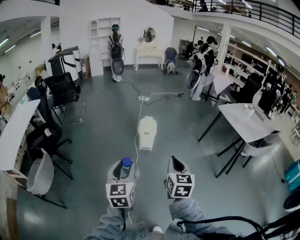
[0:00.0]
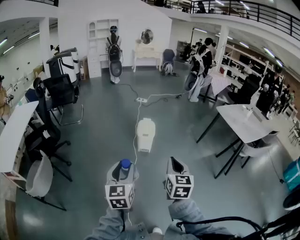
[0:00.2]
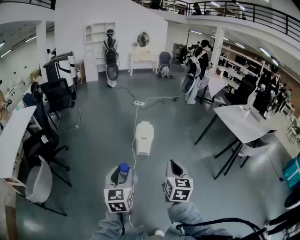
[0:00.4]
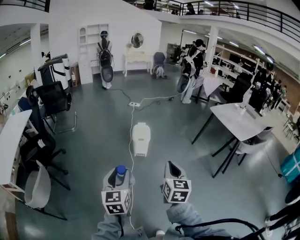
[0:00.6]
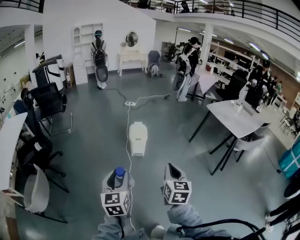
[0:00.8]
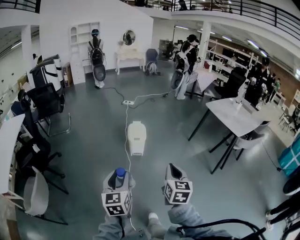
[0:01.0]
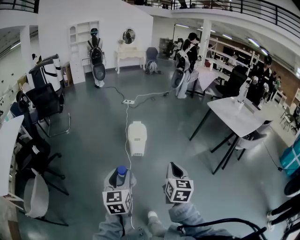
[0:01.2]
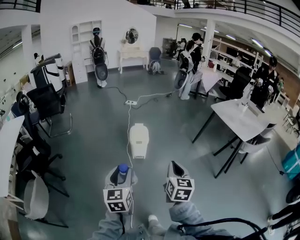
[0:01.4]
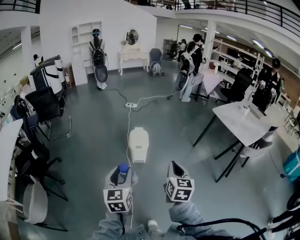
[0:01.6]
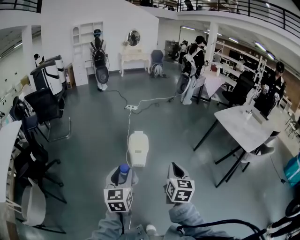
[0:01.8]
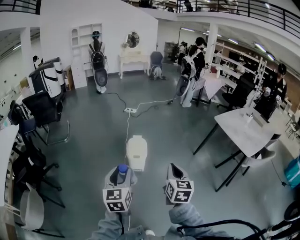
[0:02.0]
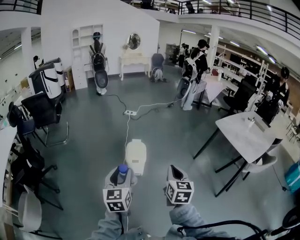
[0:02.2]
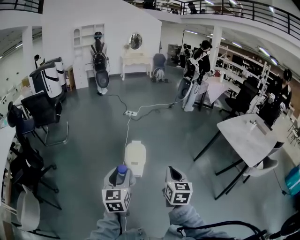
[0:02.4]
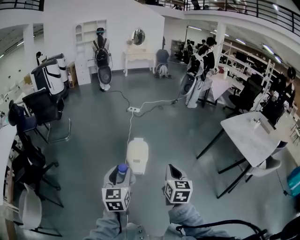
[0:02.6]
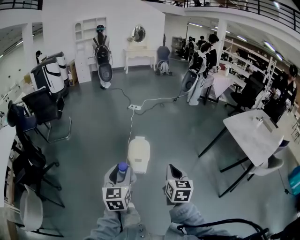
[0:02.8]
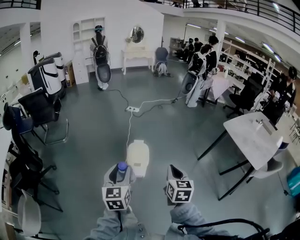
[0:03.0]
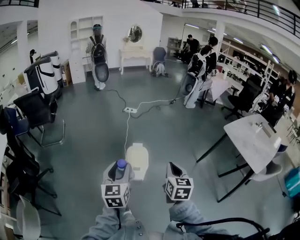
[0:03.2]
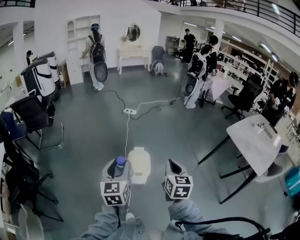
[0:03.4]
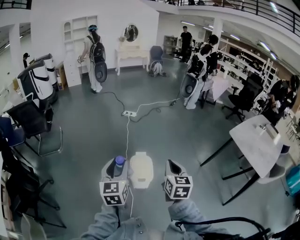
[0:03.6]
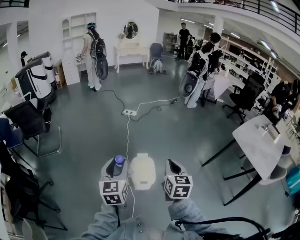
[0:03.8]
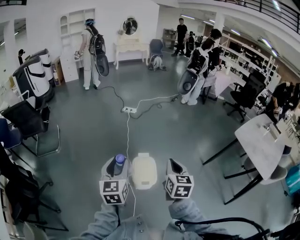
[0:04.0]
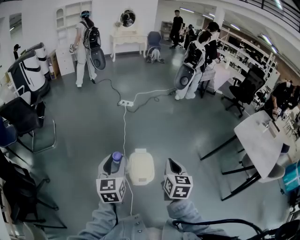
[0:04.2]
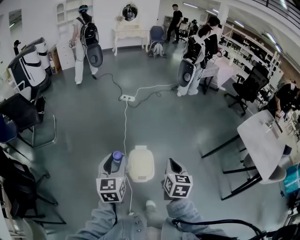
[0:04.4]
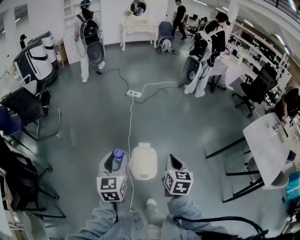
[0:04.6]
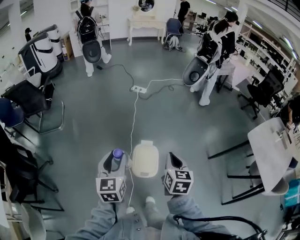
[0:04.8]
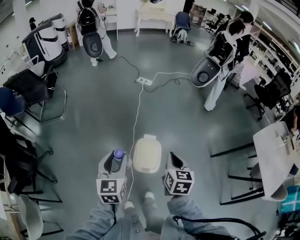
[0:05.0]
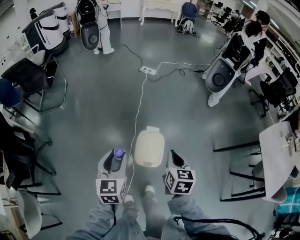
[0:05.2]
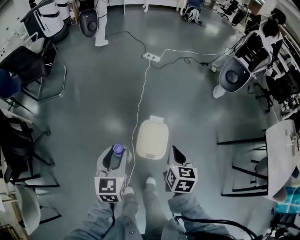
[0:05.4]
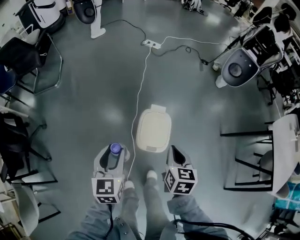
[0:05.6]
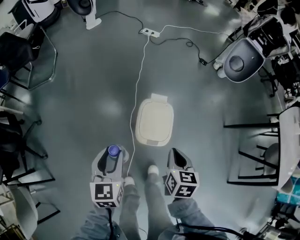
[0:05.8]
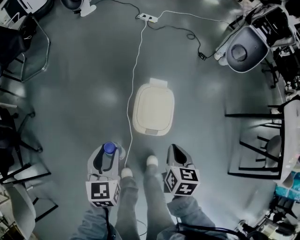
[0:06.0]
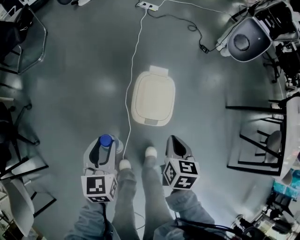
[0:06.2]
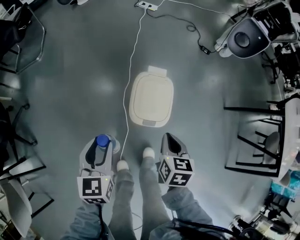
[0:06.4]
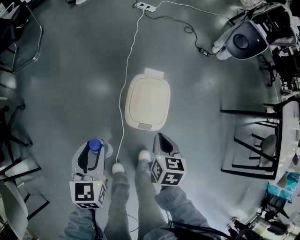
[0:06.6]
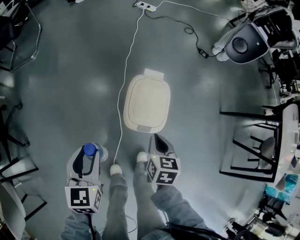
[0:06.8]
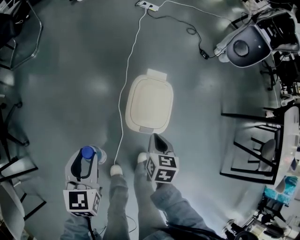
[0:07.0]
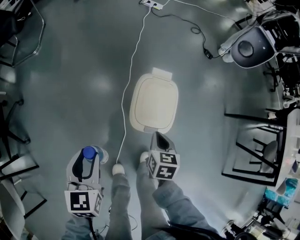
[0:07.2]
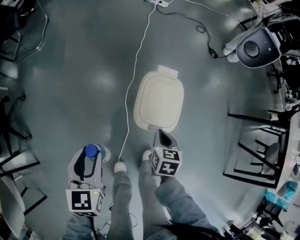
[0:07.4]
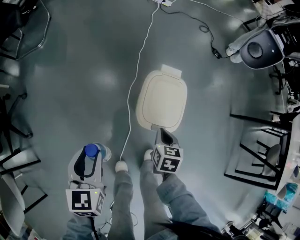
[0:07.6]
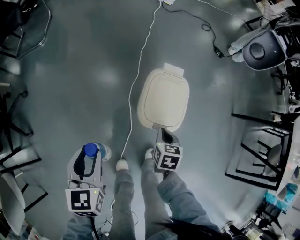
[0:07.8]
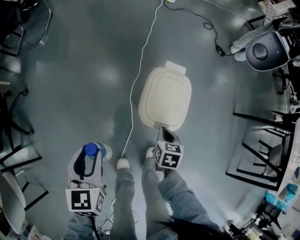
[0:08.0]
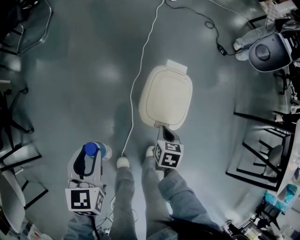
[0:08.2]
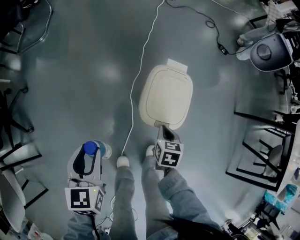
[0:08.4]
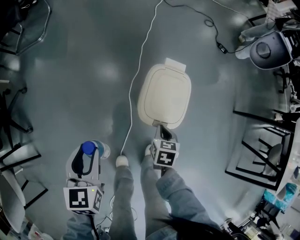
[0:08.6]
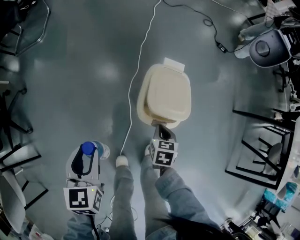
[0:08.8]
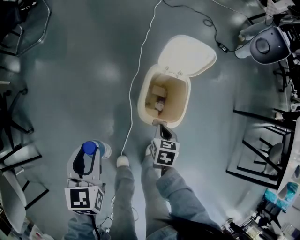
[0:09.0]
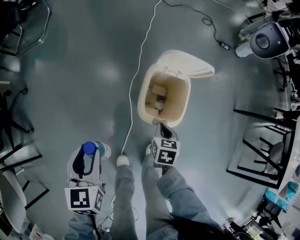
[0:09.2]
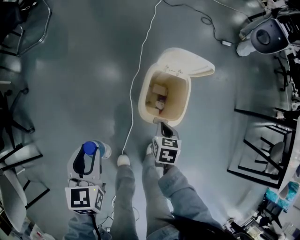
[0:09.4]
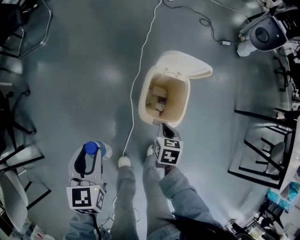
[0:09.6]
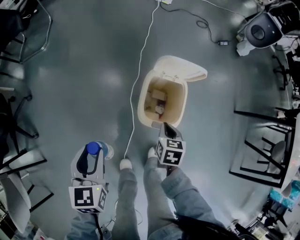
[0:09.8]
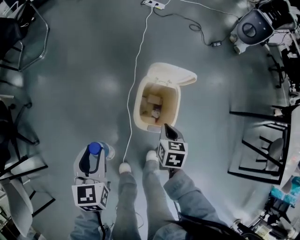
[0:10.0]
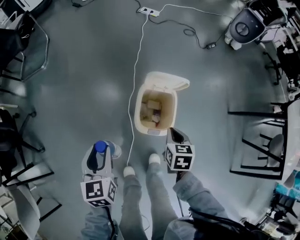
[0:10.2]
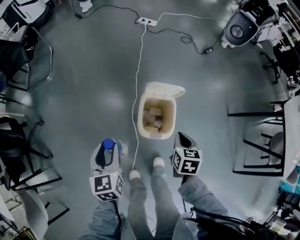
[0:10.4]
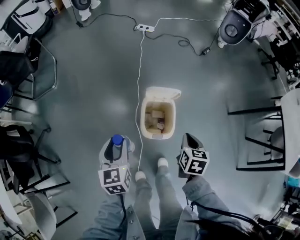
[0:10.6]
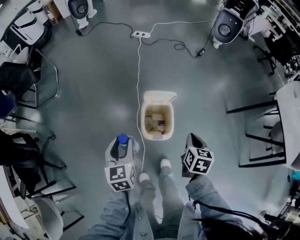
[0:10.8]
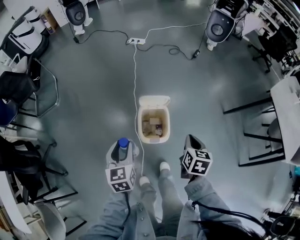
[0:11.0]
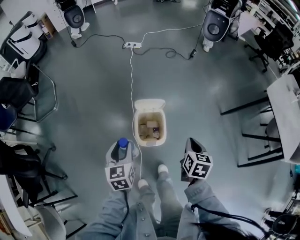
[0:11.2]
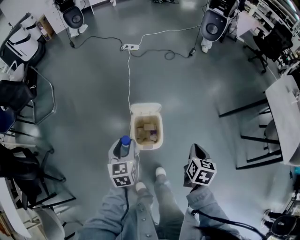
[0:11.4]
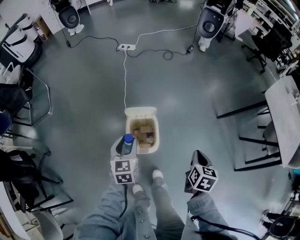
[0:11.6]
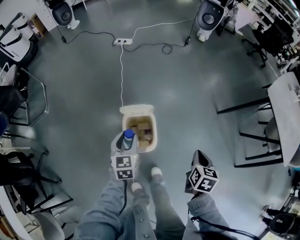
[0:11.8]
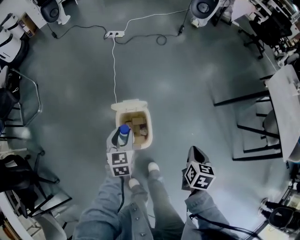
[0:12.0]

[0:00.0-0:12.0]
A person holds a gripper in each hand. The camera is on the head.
0:00.0 to 0:01.6: The grippers both shift forward by approximately 15 cm.
0:01.6 to 0:03.0: The two grippers go about 25 cm forward.
0:03.0 to 0:04.4: The grippers both shift forward by some 30 cm.
0:04.4 to 0:06.0: The grippers both shift downward by some 35 cm. The right gripper turns by roughly 20 degrees.
0:06.0 to 0:07.6: The left gripper is displaced to the left and downward by approximately 10 cm; the right gripper moves downward, about 15 cm.
0:07.6 to 0:09.0: The grippers move only a little.
0:09.0 to 0:10.4: The left gripper shifts approximately 10 cm upward and forward; the right gripper goes roughly 20 cm upward.
0:10.4 to 0:12.0: The right gripper is displaced to the right by roughly 20 cm, and changes its angle by roughly 20 degrees. The left gripper goes some 25 cm to the right and forward, and swivels approximately 20 degrees.

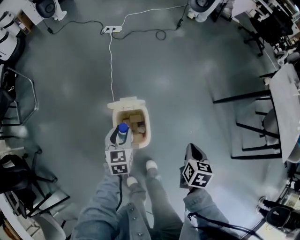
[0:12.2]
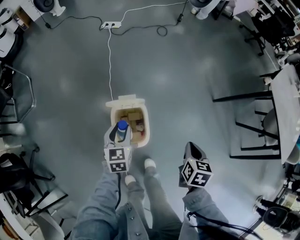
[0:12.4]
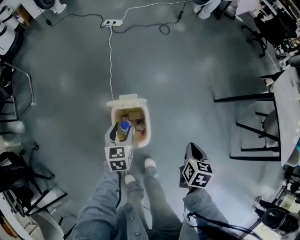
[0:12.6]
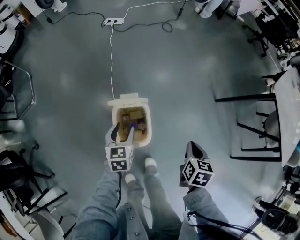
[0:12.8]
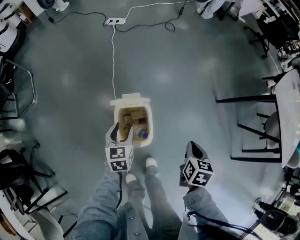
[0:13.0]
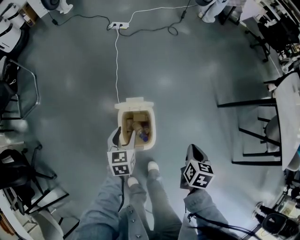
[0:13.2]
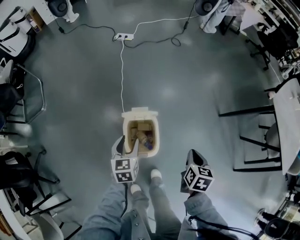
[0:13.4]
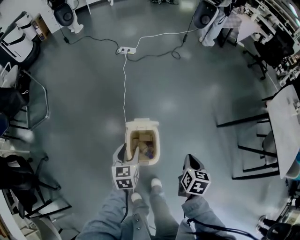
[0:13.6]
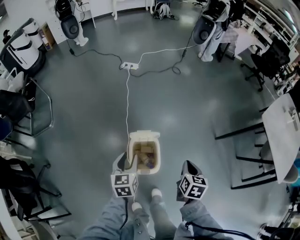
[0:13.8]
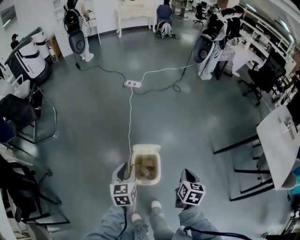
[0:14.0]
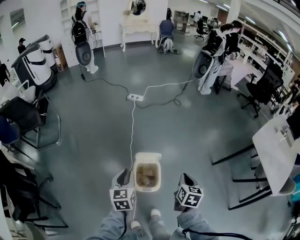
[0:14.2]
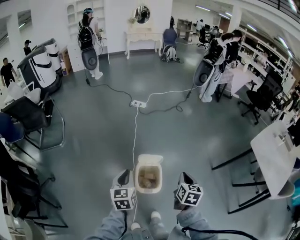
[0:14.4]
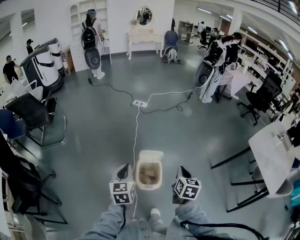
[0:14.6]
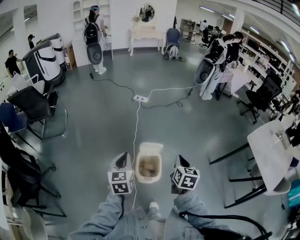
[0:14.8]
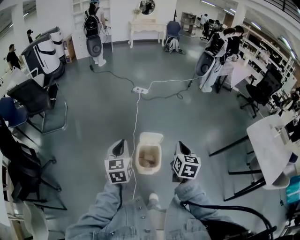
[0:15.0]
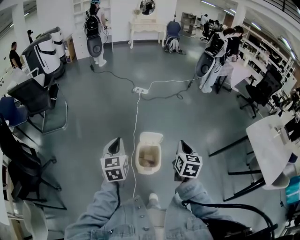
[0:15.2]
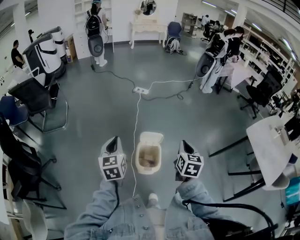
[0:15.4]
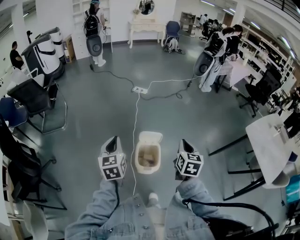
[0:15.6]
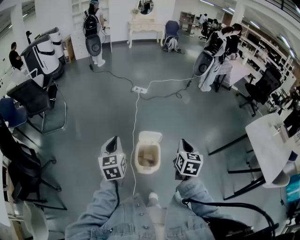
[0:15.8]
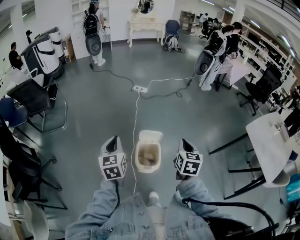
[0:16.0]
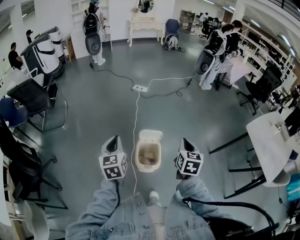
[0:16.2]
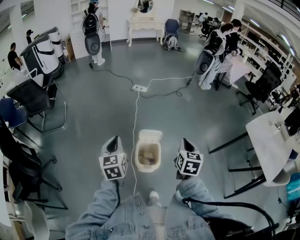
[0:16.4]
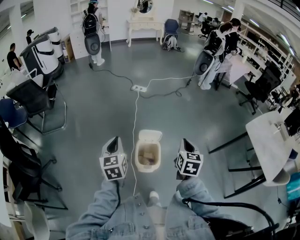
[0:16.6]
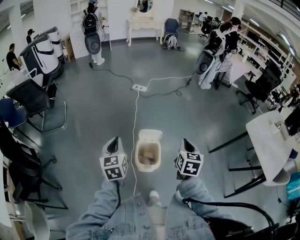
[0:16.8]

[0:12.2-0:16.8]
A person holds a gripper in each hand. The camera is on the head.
0:12.2 to 0:13.8: The left gripper moves upward, about 10 cm. Meanwhile the right gripper shifts roughly 10 cm upward and to the left.
0:13.8 to 0:15.2: The right gripper shifts roughly 20 cm upward, and swivels some 20 degrees. The left gripper travels upward, backward and to the left by about 25 cm, and closes its fingers.
0:15.2 to 0:16.8: The grippers make only small movements.

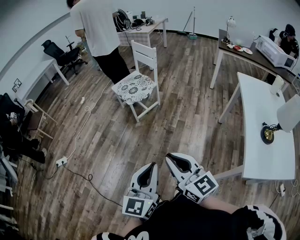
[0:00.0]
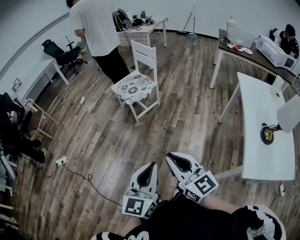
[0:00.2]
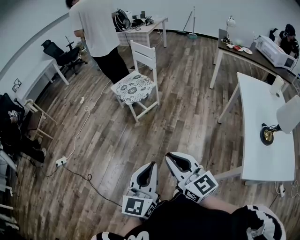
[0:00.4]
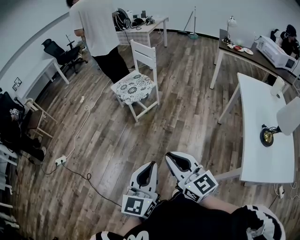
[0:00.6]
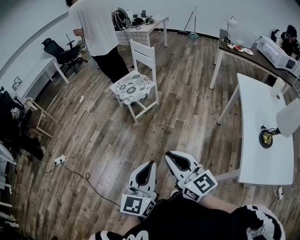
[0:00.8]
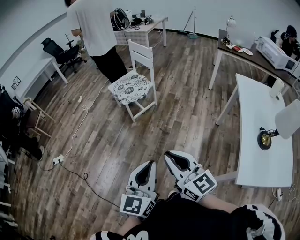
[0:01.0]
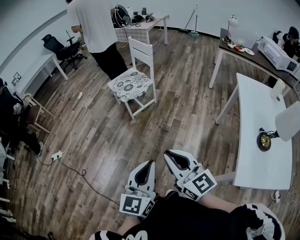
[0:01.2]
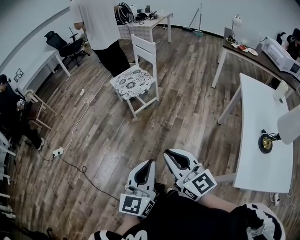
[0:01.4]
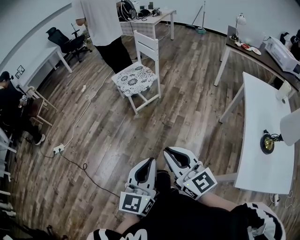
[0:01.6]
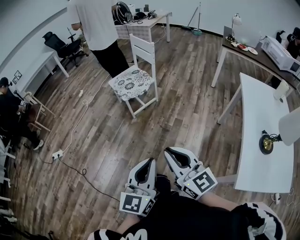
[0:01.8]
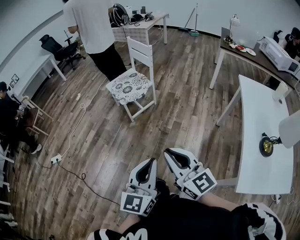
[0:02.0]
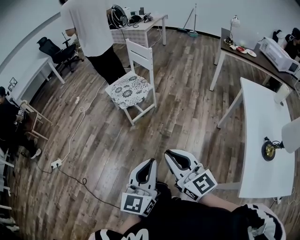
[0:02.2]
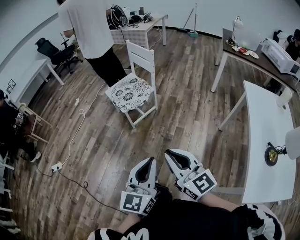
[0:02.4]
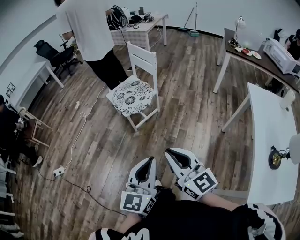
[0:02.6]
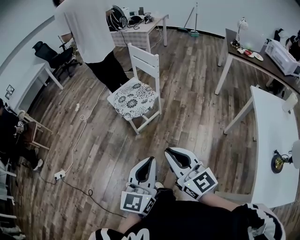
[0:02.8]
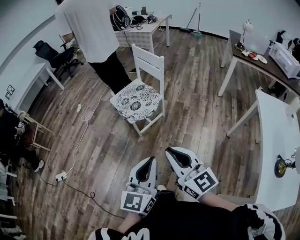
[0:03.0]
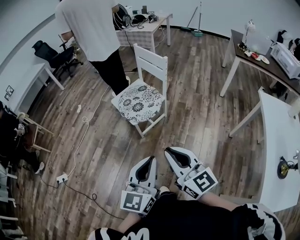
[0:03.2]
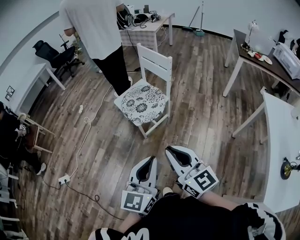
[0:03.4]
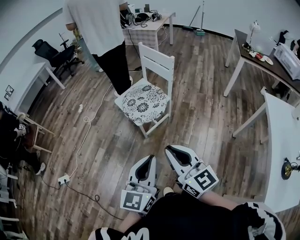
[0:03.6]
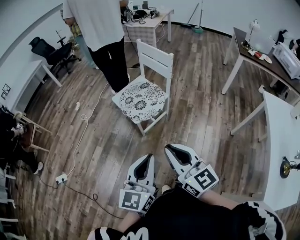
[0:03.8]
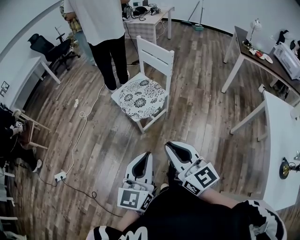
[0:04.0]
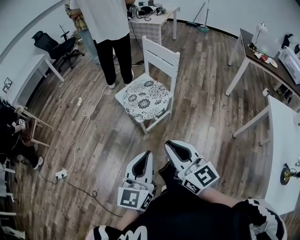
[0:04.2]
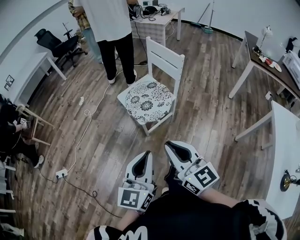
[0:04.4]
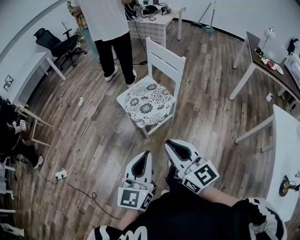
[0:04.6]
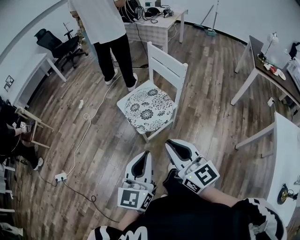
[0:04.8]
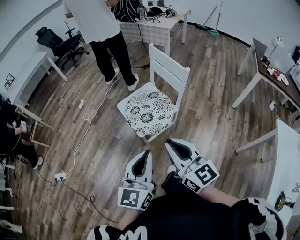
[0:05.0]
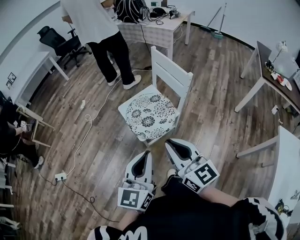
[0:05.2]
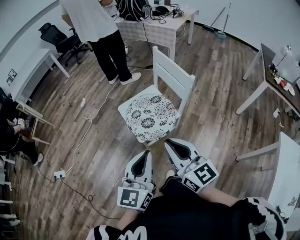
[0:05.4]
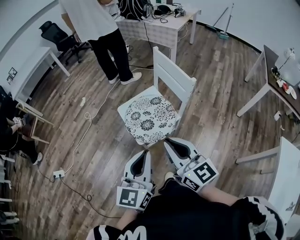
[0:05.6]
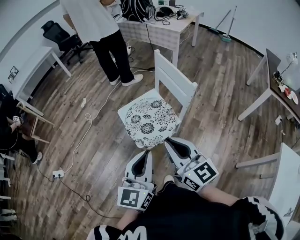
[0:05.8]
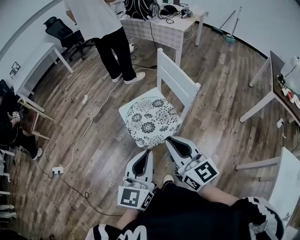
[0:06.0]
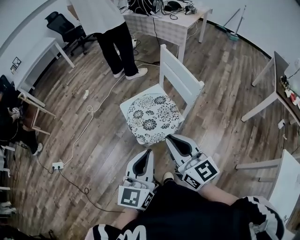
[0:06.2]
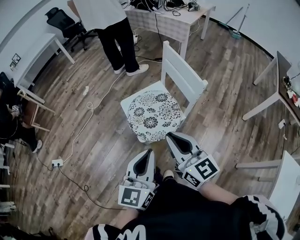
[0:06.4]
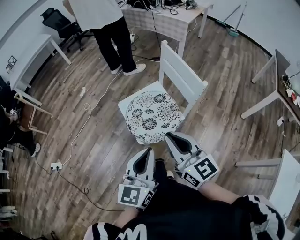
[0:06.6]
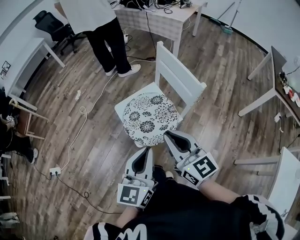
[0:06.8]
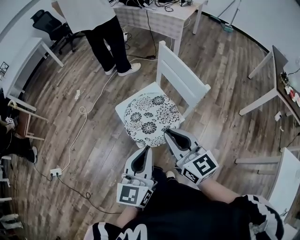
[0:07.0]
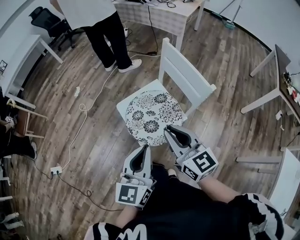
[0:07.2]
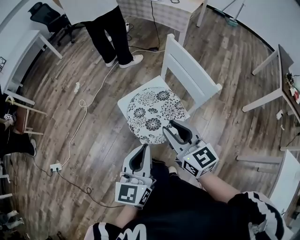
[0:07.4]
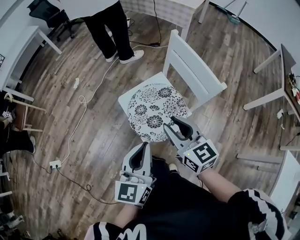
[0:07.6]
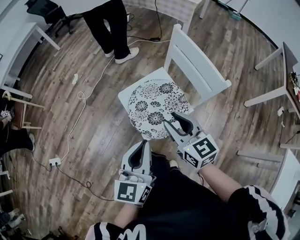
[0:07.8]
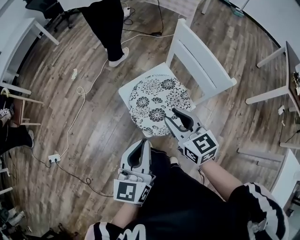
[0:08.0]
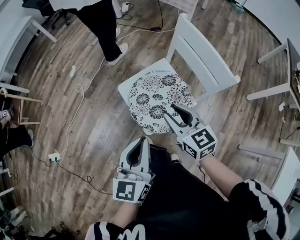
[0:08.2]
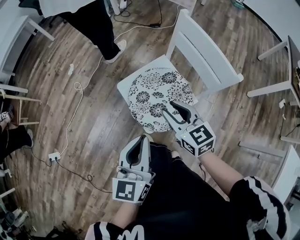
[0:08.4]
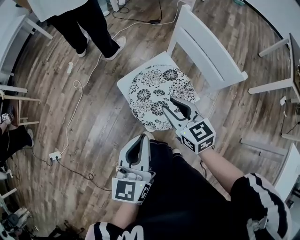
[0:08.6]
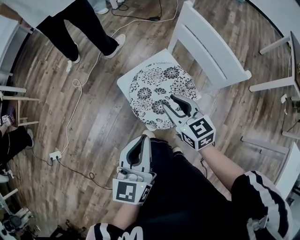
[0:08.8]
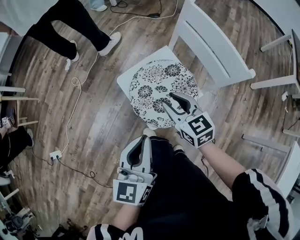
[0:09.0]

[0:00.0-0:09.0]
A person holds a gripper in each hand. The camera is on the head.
0:00.0 to 0:01.6: Both grippers move to the right, some 5 cm.
0:01.6 to 0:03.0: The grippers both shift forward by about 25 cm.
0:03.0 to 0:04.4: Both grippers travel together forward and to the left, some 15 cm.
0:04.4 to 0:06.0: The two grippers go approximately 20 cm forward.
0:06.0 to 0:07.6: The right gripper heads forward and downward, covering roughly 20 cm, and opens its fingers; the left gripper goes approximately 15 cm forward, to the left and downward.
0:07.6 to 0:09.0: The right gripper travels downward and forward by some 15 cm. Meanwhile the left gripper shifts about 5 cm downward.
